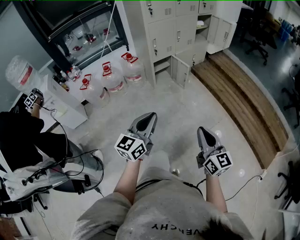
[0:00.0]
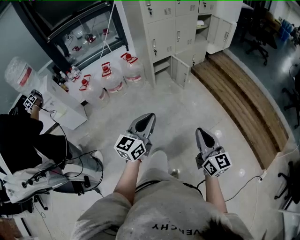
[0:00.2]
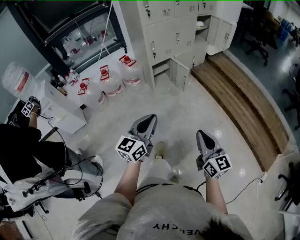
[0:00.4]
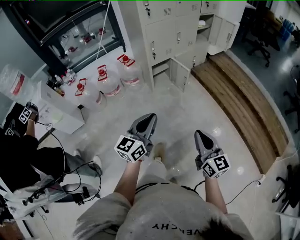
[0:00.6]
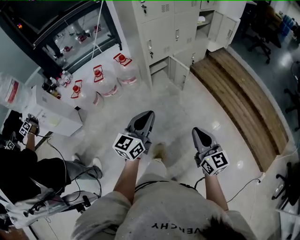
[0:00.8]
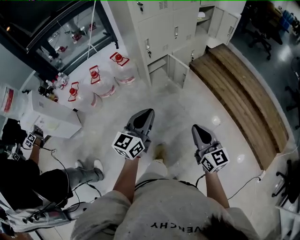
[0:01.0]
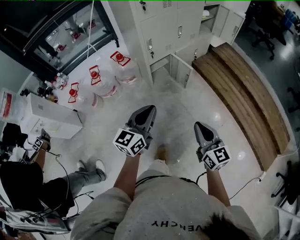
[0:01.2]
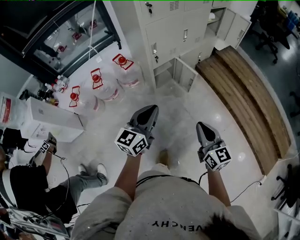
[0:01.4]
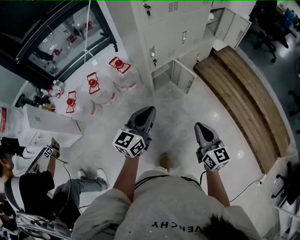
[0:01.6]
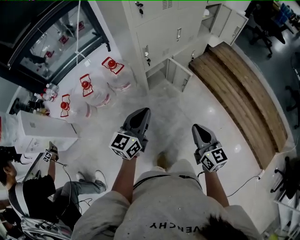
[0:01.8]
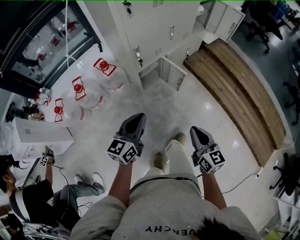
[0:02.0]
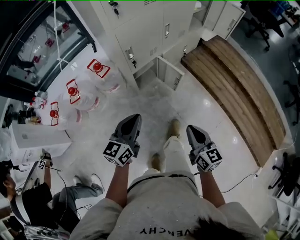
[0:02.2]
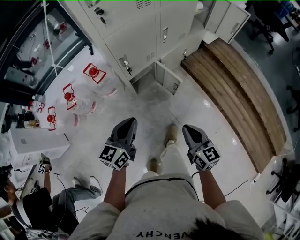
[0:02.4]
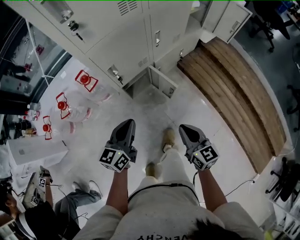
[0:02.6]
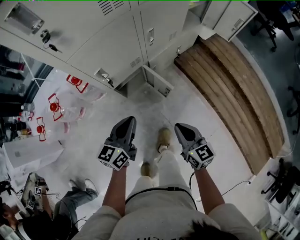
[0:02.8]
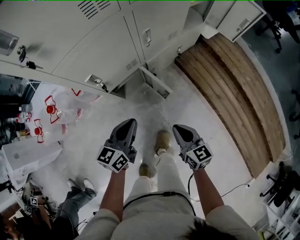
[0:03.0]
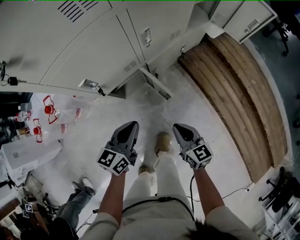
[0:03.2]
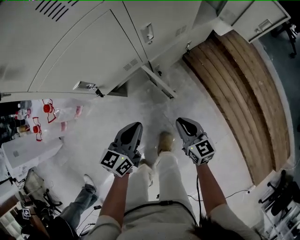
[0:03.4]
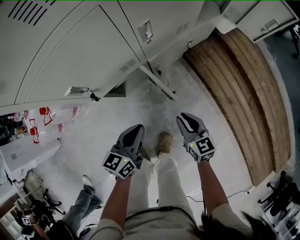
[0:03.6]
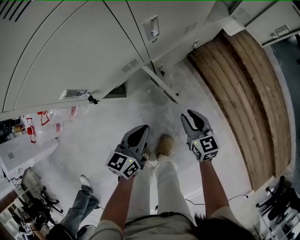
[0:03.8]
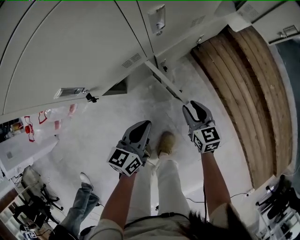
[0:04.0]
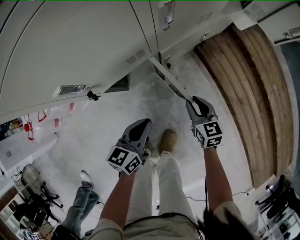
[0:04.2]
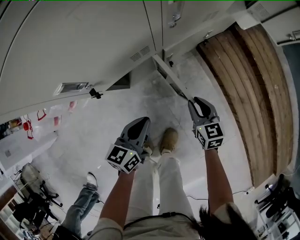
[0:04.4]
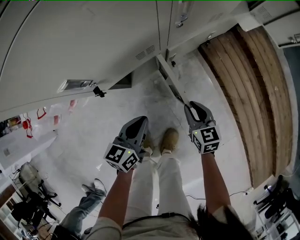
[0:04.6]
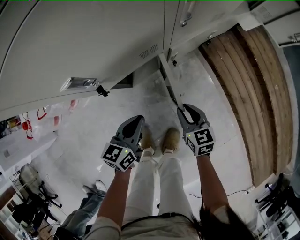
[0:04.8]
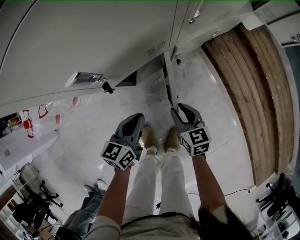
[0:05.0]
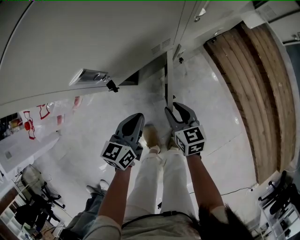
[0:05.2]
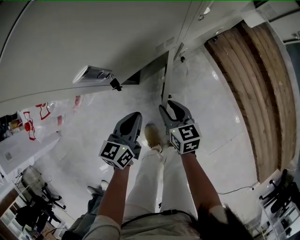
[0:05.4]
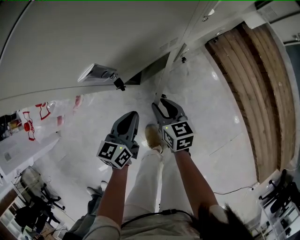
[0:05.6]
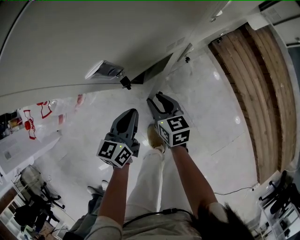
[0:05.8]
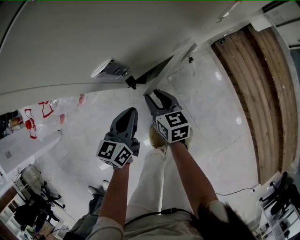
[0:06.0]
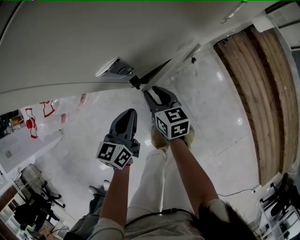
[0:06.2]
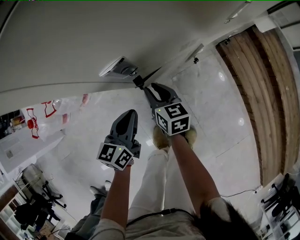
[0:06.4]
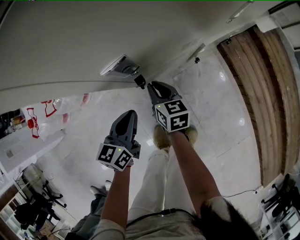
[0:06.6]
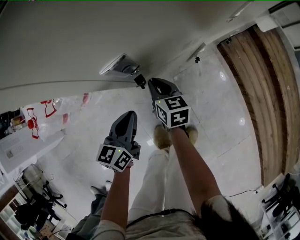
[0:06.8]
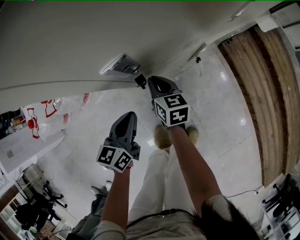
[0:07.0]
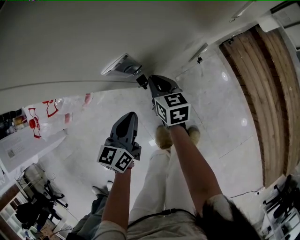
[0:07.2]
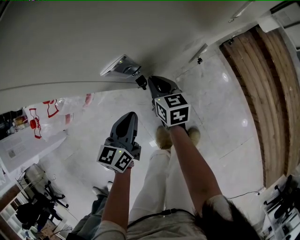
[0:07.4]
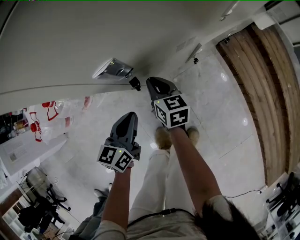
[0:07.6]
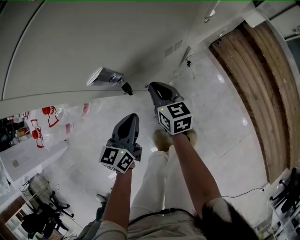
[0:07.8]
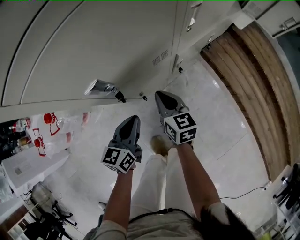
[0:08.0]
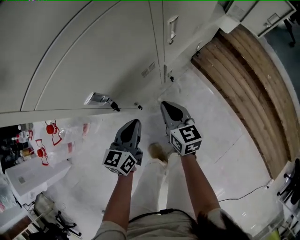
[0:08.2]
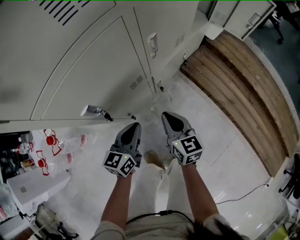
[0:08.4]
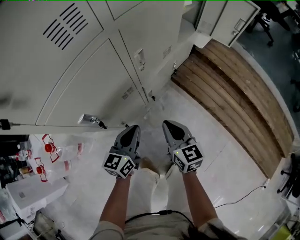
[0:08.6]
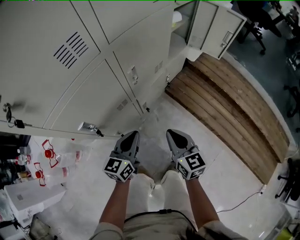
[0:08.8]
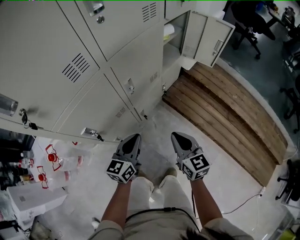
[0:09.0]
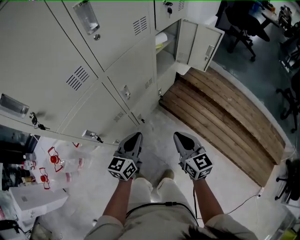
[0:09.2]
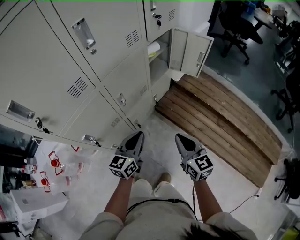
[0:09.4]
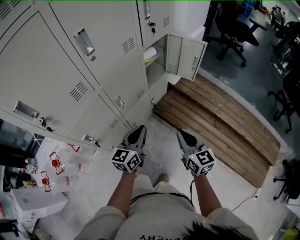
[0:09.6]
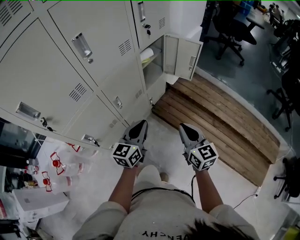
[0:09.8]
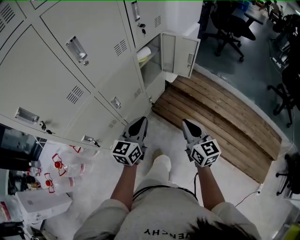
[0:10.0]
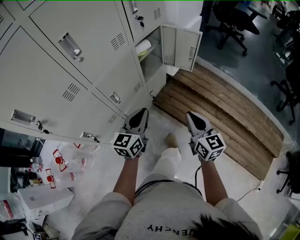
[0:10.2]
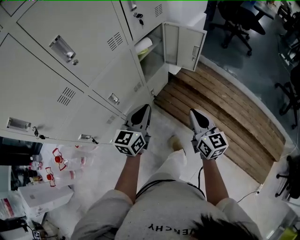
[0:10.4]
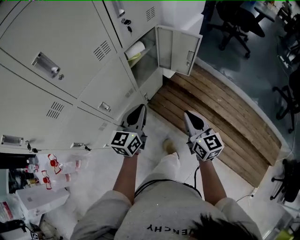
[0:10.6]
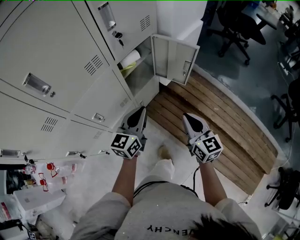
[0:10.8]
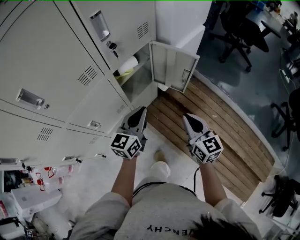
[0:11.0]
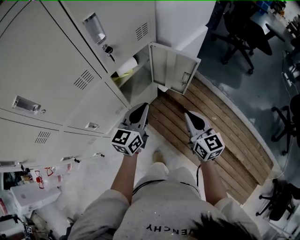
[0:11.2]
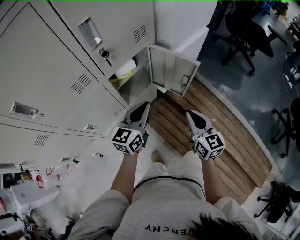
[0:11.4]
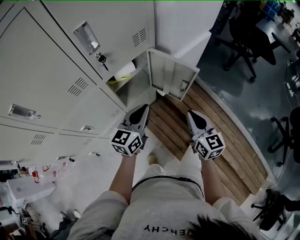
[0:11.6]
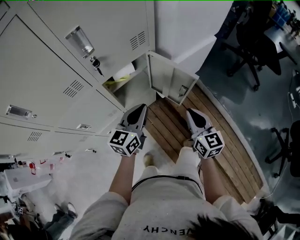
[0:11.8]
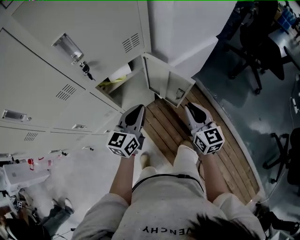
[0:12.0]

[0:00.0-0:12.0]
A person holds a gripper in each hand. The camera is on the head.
0:00.0 to 0:01.6: The pair of grippers is taken forward, roughly 40 cm.
0:01.6 to 0:03.0: The left gripper goes approximately 40 cm forward, downward and to the right. Meanwhile the right gripper shifts about 40 cm forward and downward.
0:03.0 to 0:04.4: The left gripper goes approximately 20 cm downward. The right gripper heads downward and forward, covering roughly 30 cm, and opens up.
0:04.4 to 0:06.0: The left gripper heads to the left, covering roughly 15 cm. Meanwhile the right gripper shifts approximately 30 cm to the left.
0:06.0 to 0:07.6: The right gripper moves forward, some 5 cm, and closes its fingers.
0:07.6 to 0:09.0: Both grippers move to the right and upward, about 40 cm. The right gripper changes its angle by roughly 20 degrees. The left gripper rotates roughly 30 degrees.
0:09.0 to 0:10.4: The two grippers go roughly 25 cm to the right, upward and forward.
0:10.4 to 0:12.0: The grippers both shift forward and to the right by approximately 35 cm.

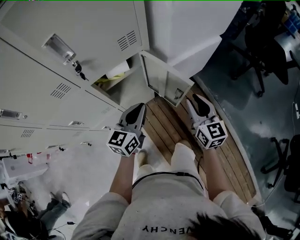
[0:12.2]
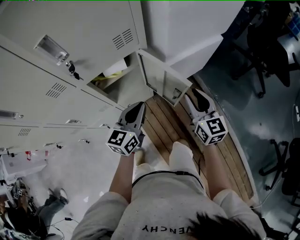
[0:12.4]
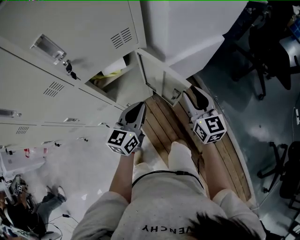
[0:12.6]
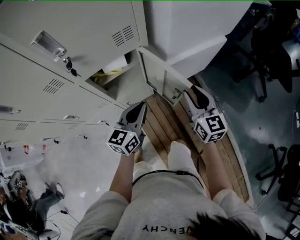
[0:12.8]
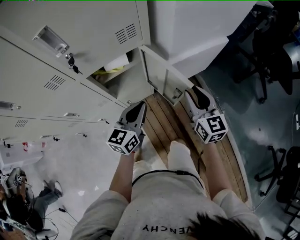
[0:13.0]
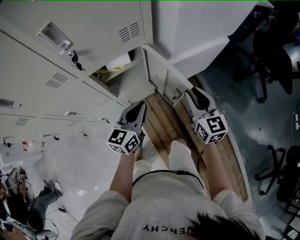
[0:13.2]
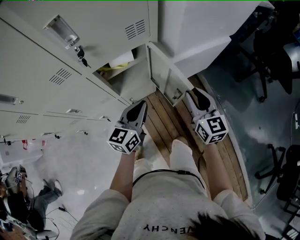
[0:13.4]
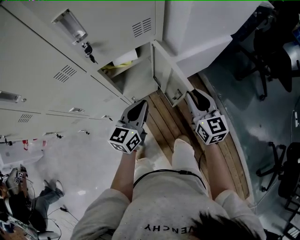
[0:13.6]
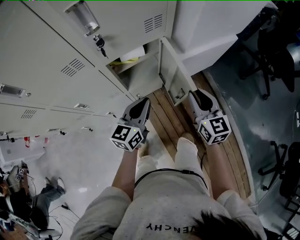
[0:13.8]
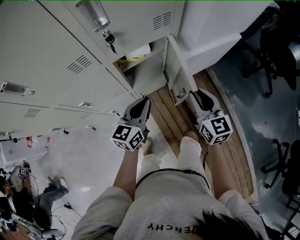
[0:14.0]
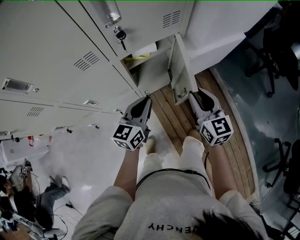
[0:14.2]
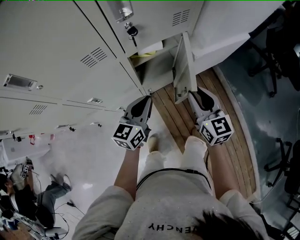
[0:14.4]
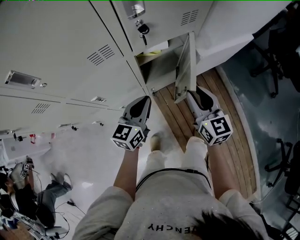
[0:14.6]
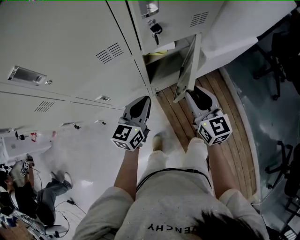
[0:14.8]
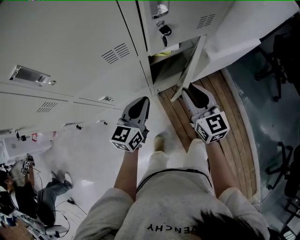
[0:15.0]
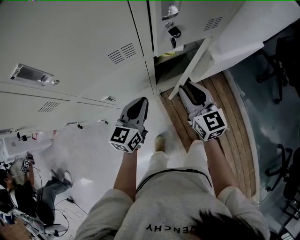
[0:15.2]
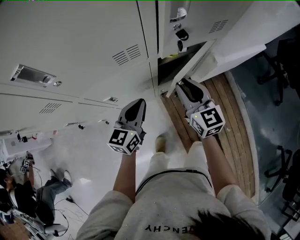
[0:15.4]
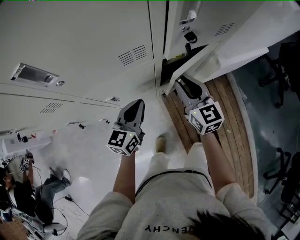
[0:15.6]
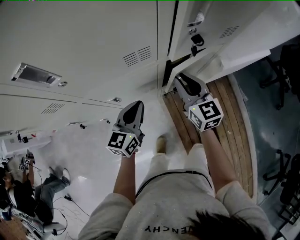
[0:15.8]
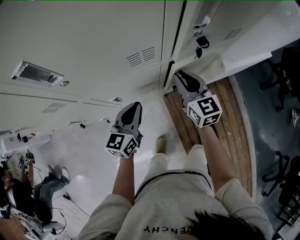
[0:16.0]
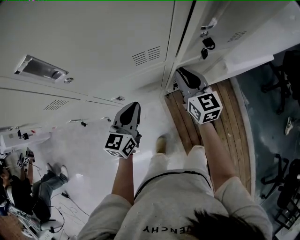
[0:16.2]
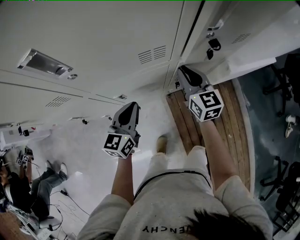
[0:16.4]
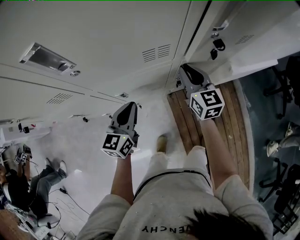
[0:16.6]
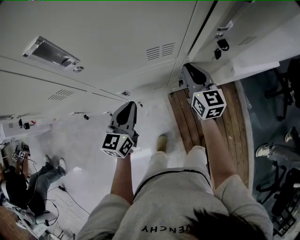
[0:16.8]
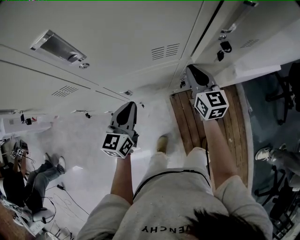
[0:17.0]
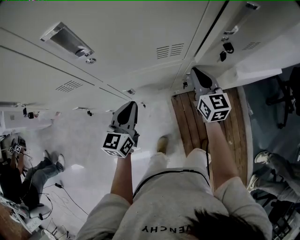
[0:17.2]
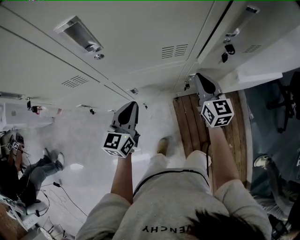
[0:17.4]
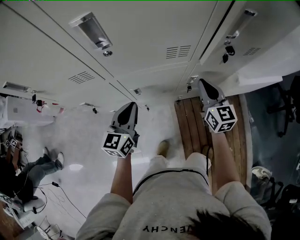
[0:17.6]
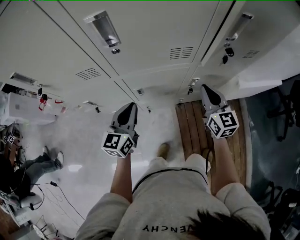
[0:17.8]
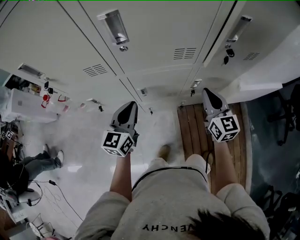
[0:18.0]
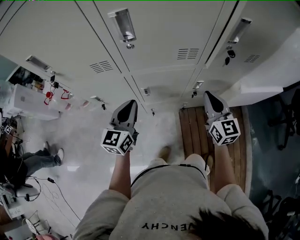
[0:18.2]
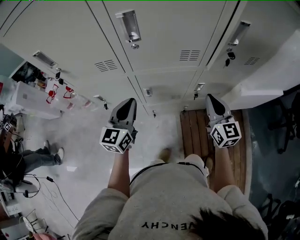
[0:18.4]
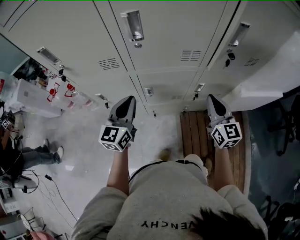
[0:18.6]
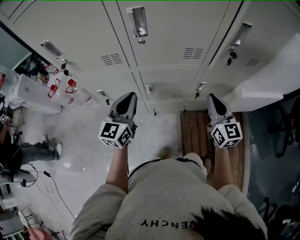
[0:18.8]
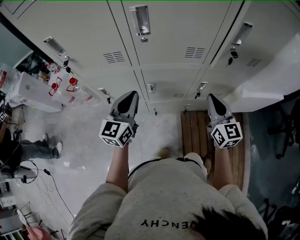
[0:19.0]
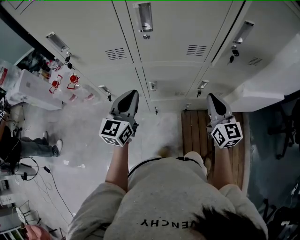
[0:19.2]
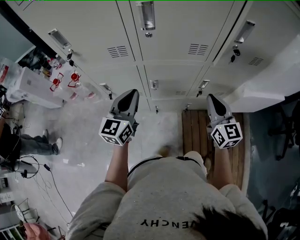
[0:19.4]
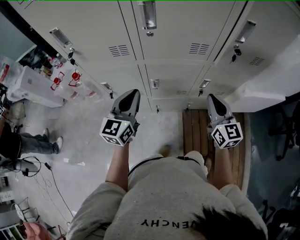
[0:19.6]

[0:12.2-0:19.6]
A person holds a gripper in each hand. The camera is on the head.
0:12.2 to 0:13.6: The grippers make only small movements.
0:13.6 to 0:15.2: Both grippers move to the left, roughly 25 cm.
0:15.2 to 0:16.6: The left gripper shifts approximately 10 cm to the left; the right gripper shifts some 15 cm forward and to the left.
0:16.6 to 0:18.2: The right gripper is displaced backward and upward by roughly 10 cm, while the left gripper moves to the left, upward and backward, roughly 15 cm.
0:18.2 to 0:19.6: The left gripper moves approximately 5 cm. The right gripper shifts by approximately 5 cm.

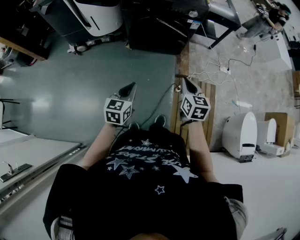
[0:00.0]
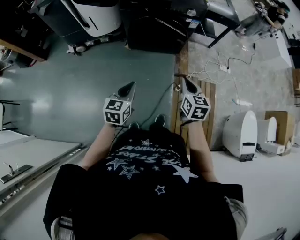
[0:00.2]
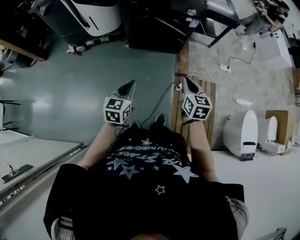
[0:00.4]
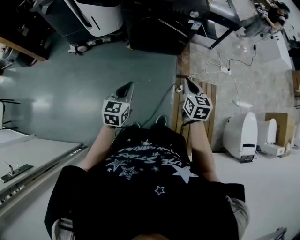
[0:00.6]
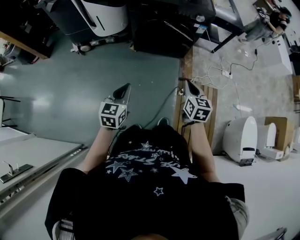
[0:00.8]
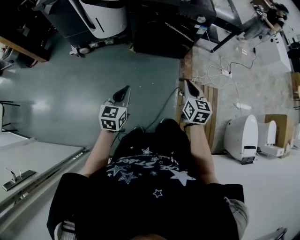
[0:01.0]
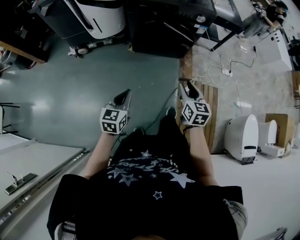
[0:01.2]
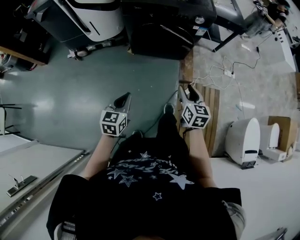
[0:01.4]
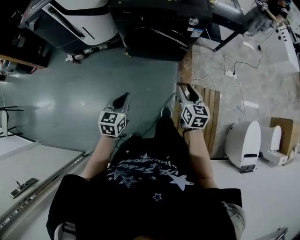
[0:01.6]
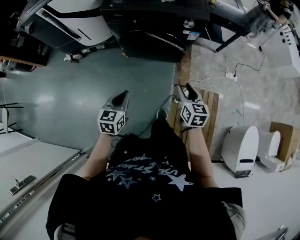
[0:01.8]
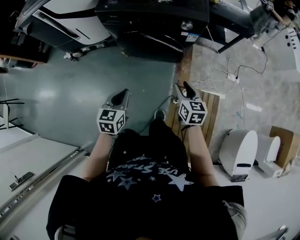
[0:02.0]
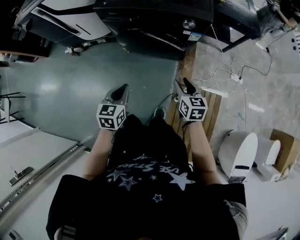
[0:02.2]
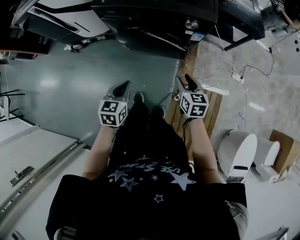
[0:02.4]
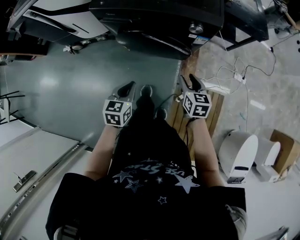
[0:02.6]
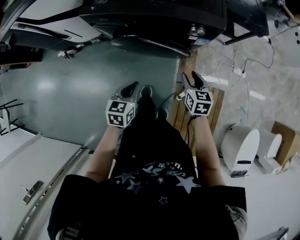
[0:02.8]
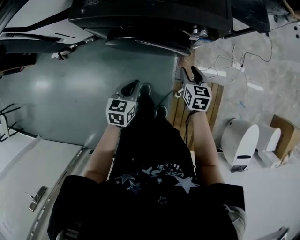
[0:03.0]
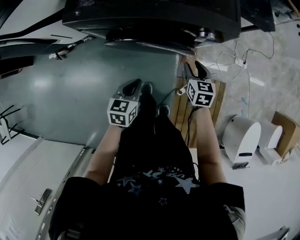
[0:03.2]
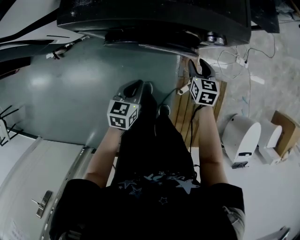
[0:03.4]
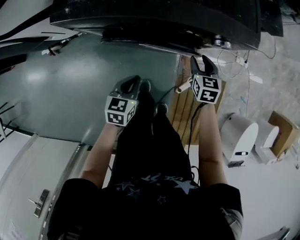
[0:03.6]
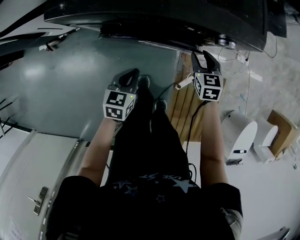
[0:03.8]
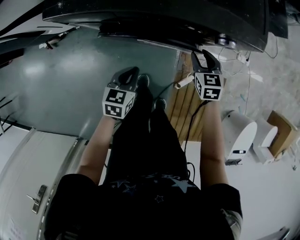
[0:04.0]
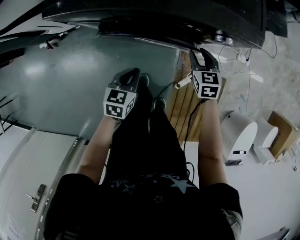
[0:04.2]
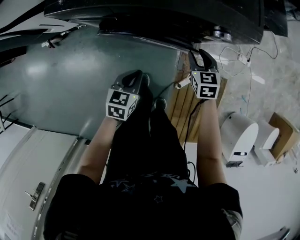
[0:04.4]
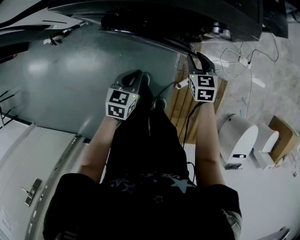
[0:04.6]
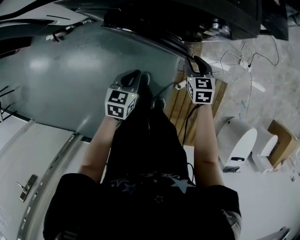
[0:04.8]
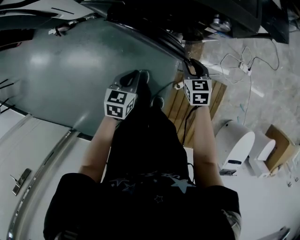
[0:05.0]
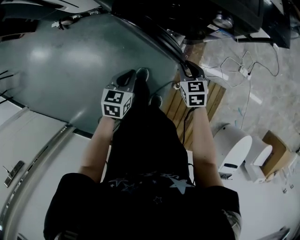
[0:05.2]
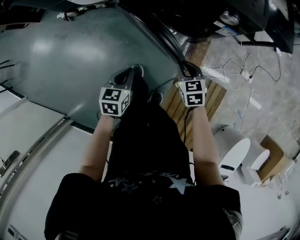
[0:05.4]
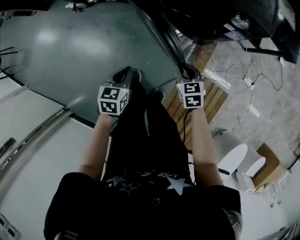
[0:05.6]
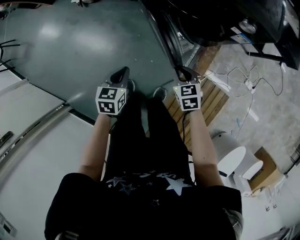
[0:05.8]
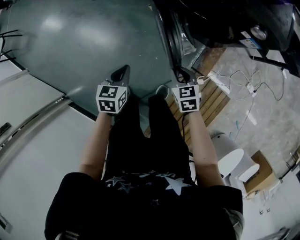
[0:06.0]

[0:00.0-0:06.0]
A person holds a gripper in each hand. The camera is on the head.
0:00.0 to 0:01.6: The left gripper moves forward, some 10 cm. The right gripper goes about 15 cm forward and downward, and opens its fingers.
0:01.6 to 0:03.0: The right gripper travels forward and downward by about 30 cm. The left gripper shifts some 30 cm forward, to the right and downward.
0:03.0 to 0:04.4: The left gripper moves downward, some 10 cm; the right gripper travels forward and downward by some 10 cm.
0:04.4 to 0:06.0: The left gripper moves some 25 cm, and rotates some 30 degrees; the right gripper ends up about 30 cm from where it was, and swivels some 30 degrees.
